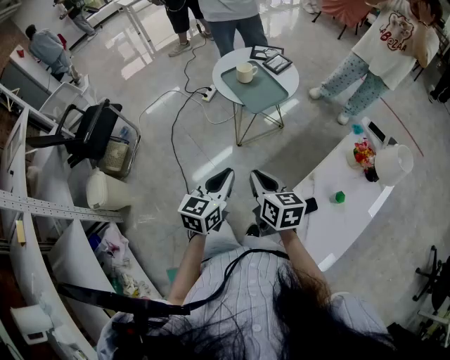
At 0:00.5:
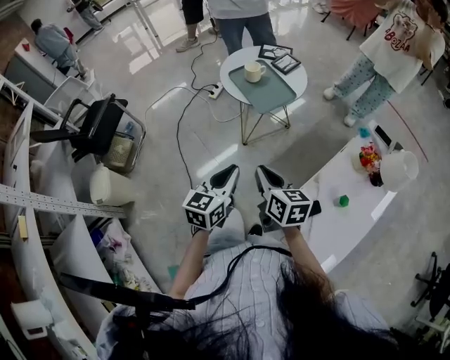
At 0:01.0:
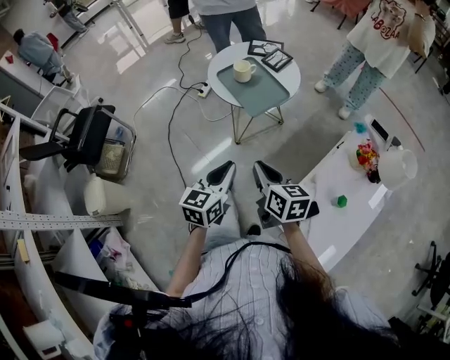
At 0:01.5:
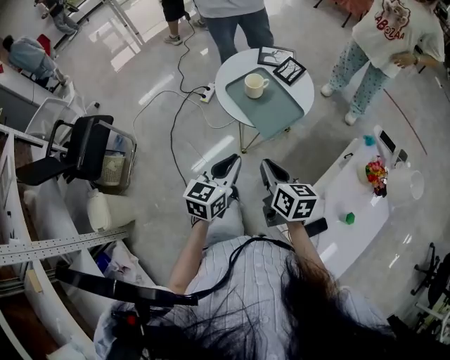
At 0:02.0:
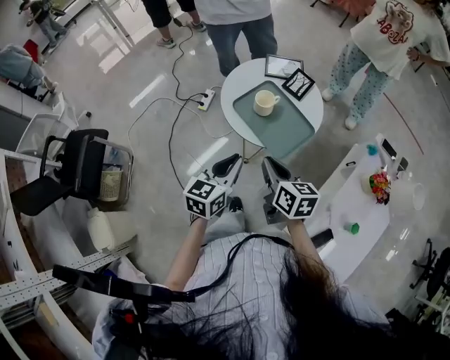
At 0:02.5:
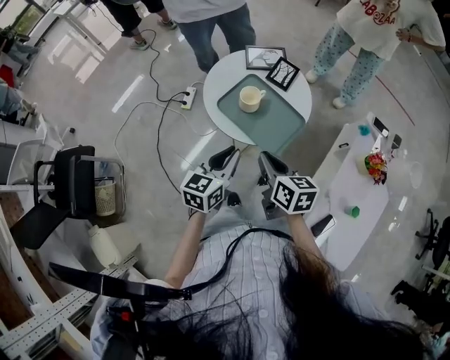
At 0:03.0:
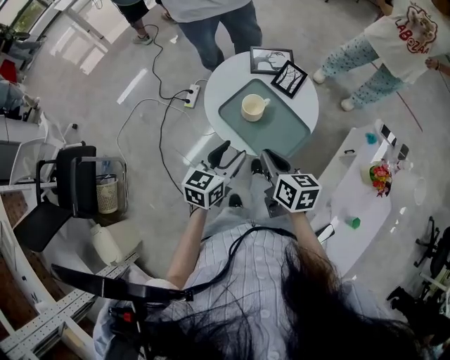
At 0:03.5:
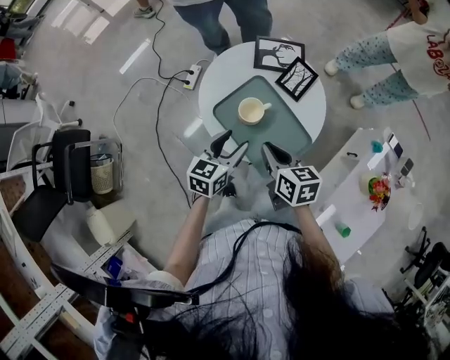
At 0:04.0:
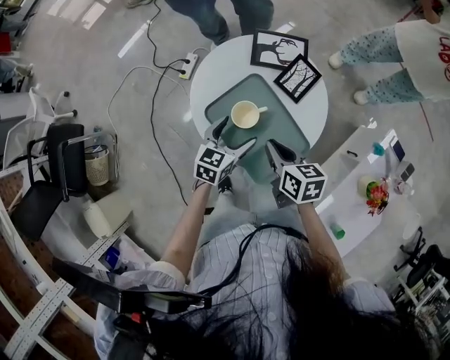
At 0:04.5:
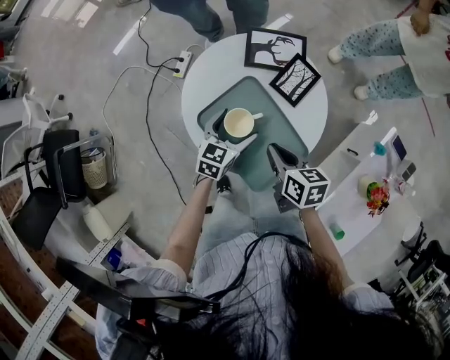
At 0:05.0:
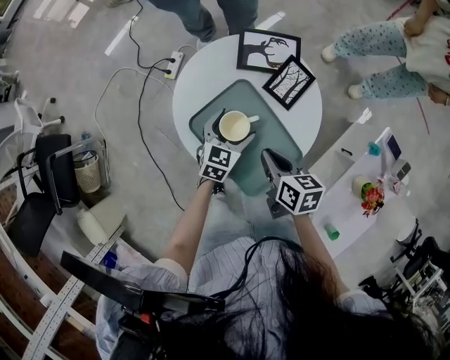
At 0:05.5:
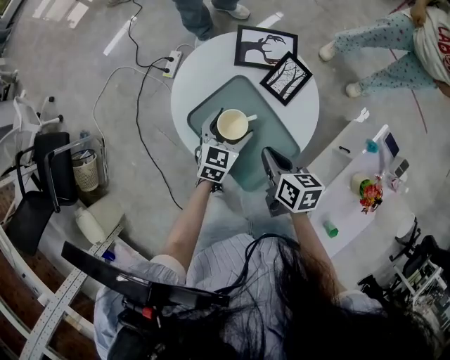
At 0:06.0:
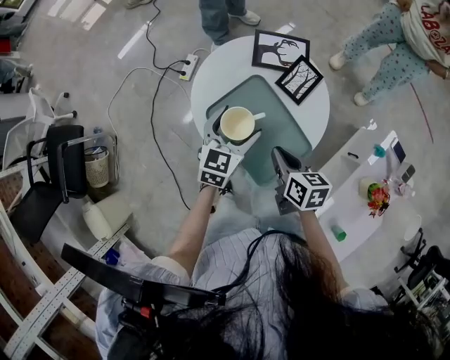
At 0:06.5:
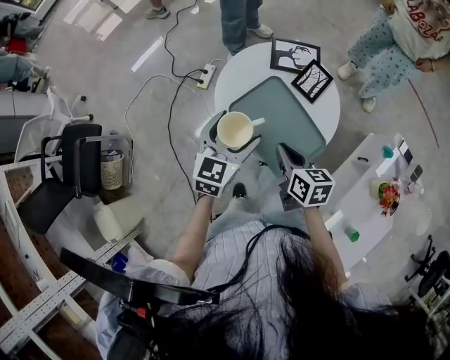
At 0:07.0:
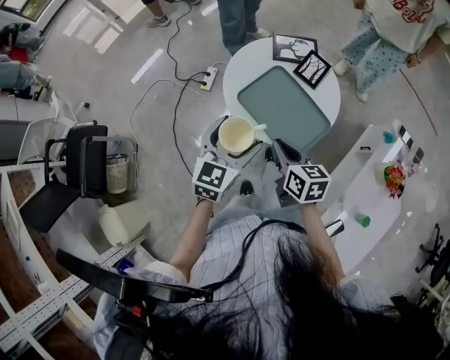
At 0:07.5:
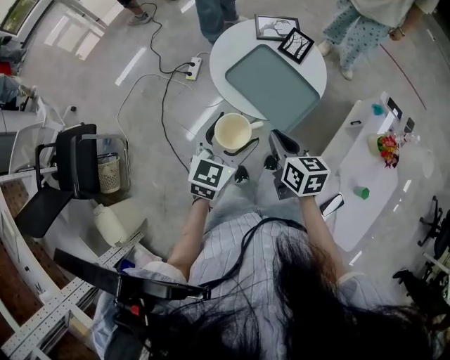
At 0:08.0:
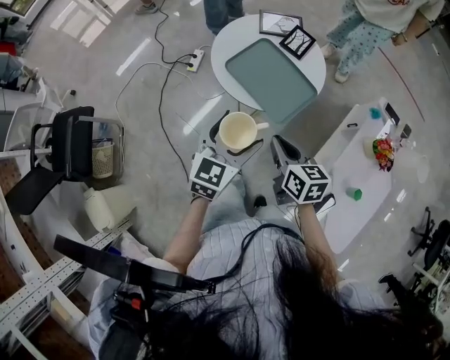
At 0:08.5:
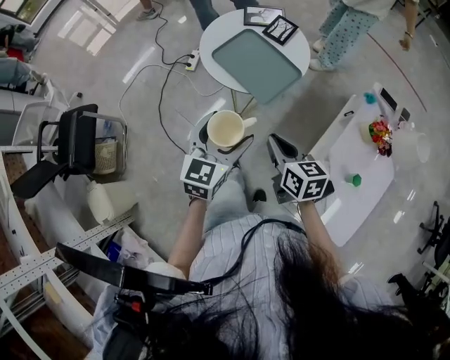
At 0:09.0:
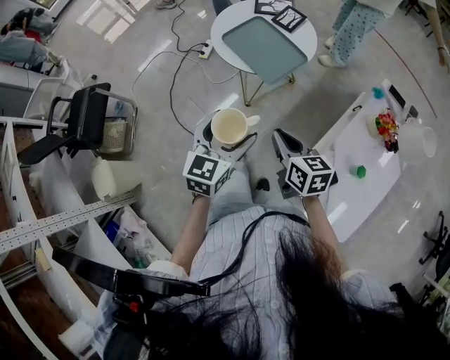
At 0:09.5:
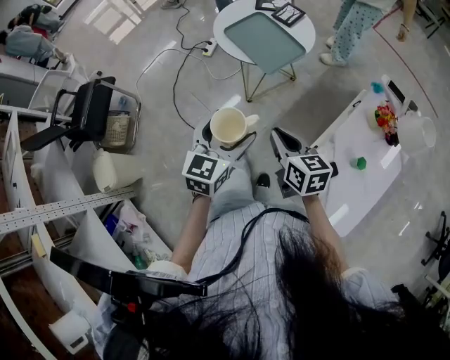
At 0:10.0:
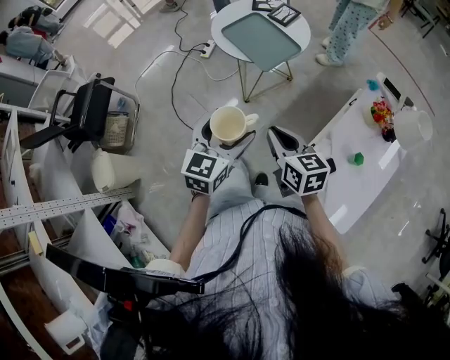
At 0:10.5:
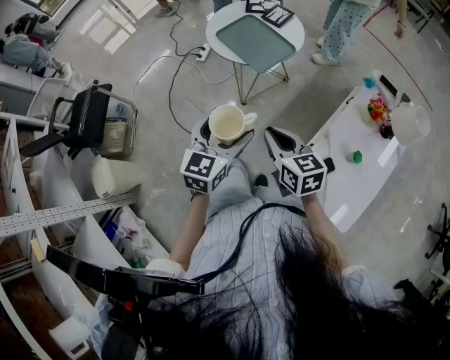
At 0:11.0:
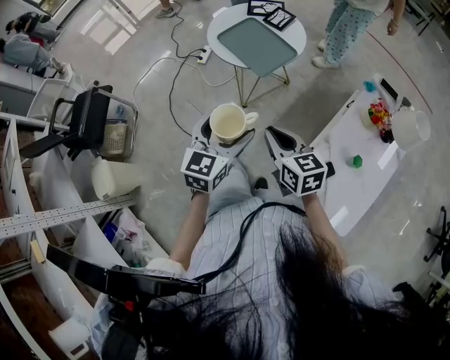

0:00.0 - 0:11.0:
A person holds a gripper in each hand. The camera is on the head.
0:00.0 - 0:02.0: Both grippers move forward, approximately 30 cm.
0:02.0 - 0:03.5: The two grippers go roughly 20 cm forward and downward. The left gripper opens.
0:03.5 - 0:05.5: The right gripper goes roughly 10 cm downward and to the right, while the left gripper heads downward, forward and to the right, covering some 15 cm, and opens.
0:05.5 - 0:07.5: The left gripper shifts roughly 35 cm backward, upward and to the left. The right gripper heads backward, to the left and upward, covering about 25 cm.
0:07.5 - 0:09.0: The right gripper moves backward and to the right, about 25 cm. The left gripper travels backward by about 20 cm.
0:09.0 - 0:11.0: The grippers both shift backward by roughly 5 cm.

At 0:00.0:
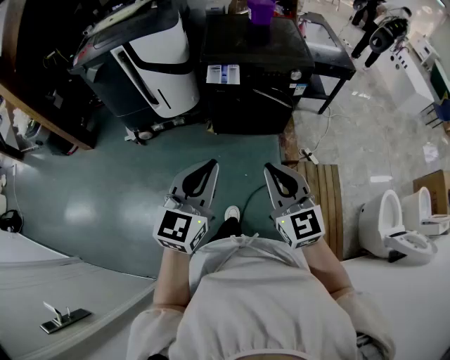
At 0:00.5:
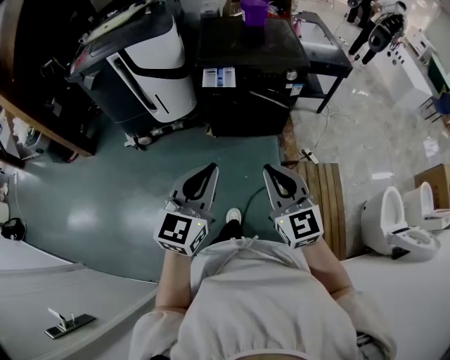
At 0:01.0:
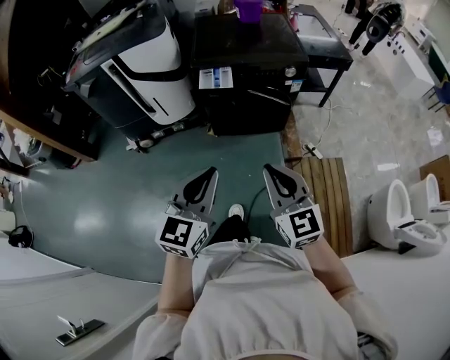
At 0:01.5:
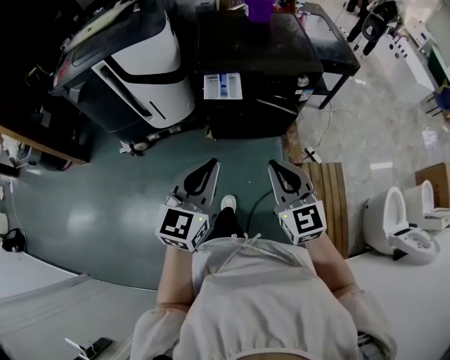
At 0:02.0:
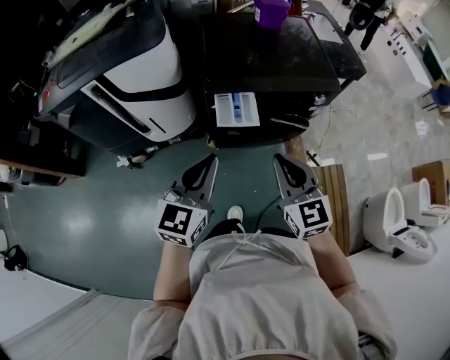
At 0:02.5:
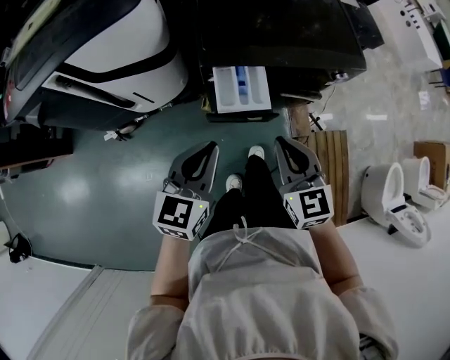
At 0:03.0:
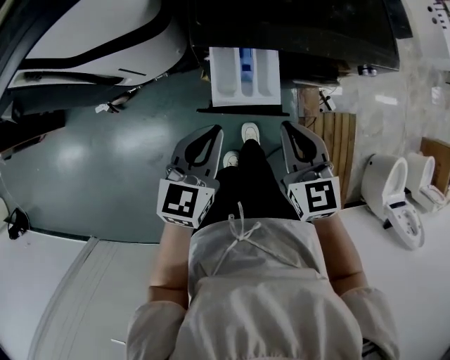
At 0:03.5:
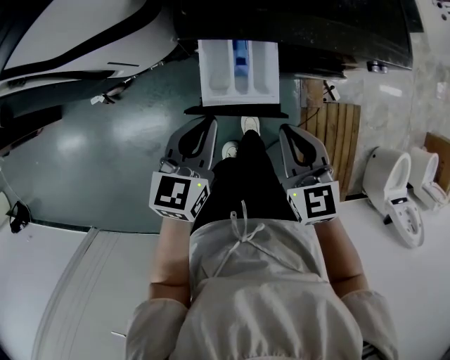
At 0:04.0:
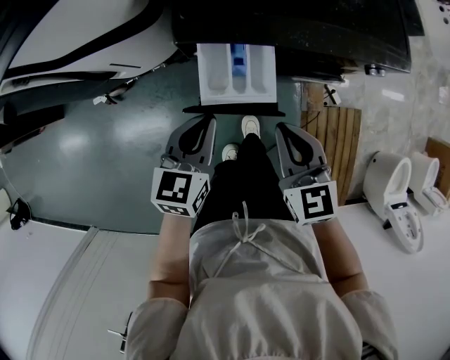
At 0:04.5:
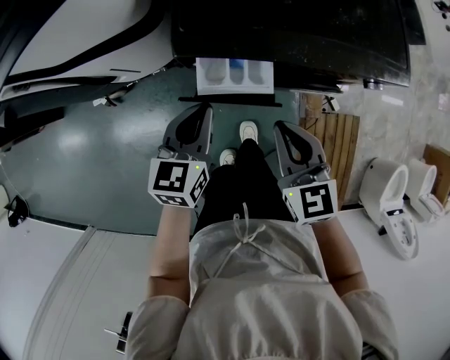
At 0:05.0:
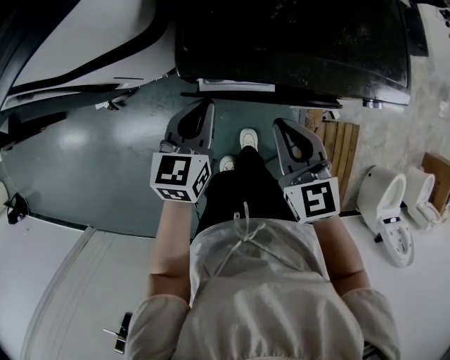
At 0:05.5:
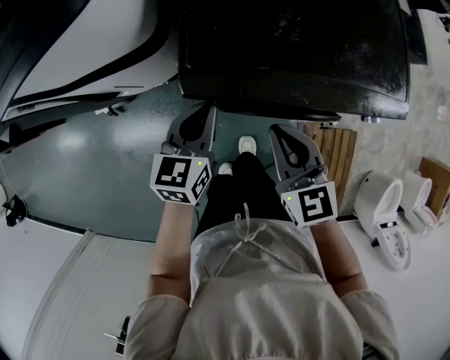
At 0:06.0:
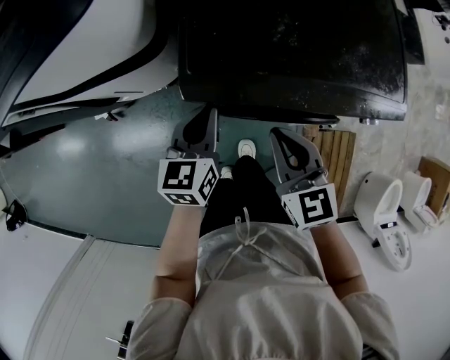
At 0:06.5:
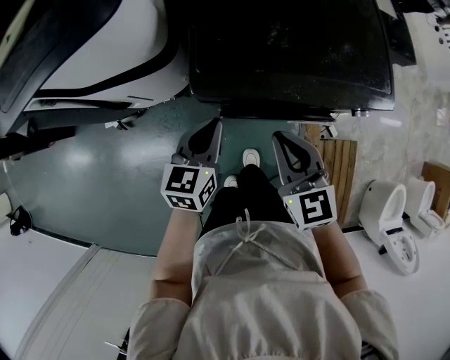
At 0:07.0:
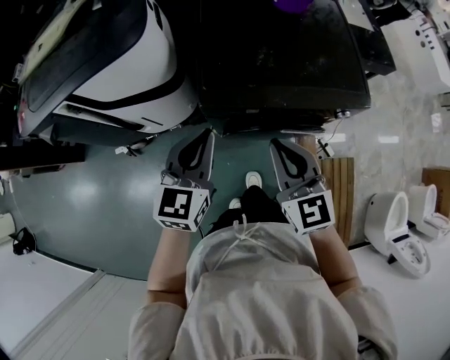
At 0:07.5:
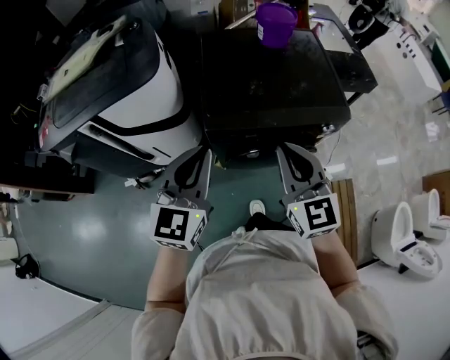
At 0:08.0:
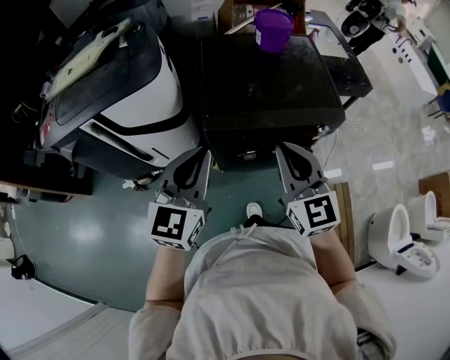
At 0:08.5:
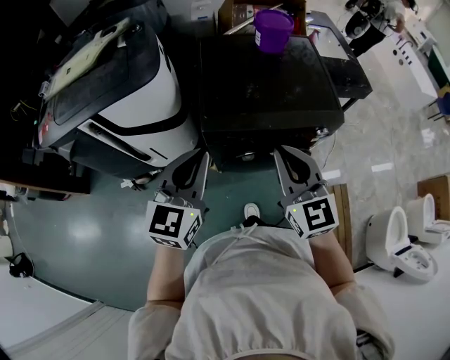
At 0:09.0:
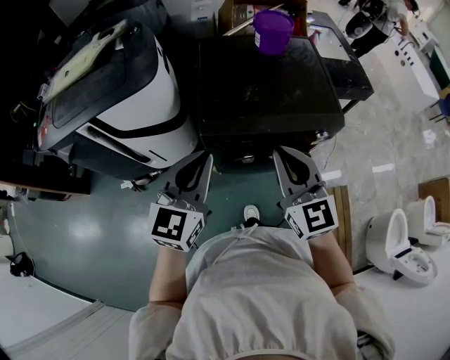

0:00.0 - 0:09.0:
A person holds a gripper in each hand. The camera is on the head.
0:00.0 - 0:02.0: The grippers both shift forward by approximately 30 cm.
0:02.0 - 0:04.5: The grippers both shift downward and forward by about 30 cm. The left gripper changes its angle by some 30 degrees. Meanwhile the right gripper changes its angle by some 20 degrees.
0:04.5 - 0:07.0: Both grippers travel together upward, some 15 cm.
0:07.0 - 0:09.0: The right gripper shifts about 10 cm upward; the left gripper moves upward and backward, some 15 cm.

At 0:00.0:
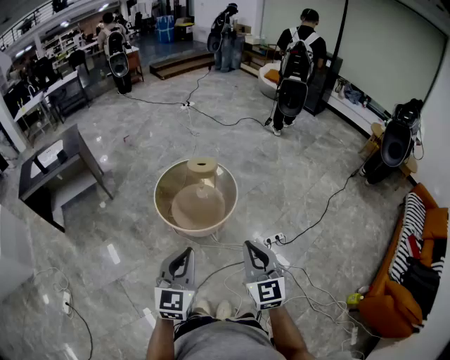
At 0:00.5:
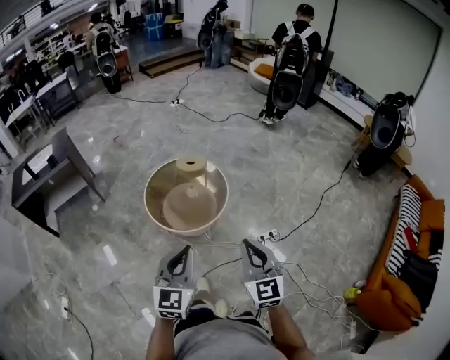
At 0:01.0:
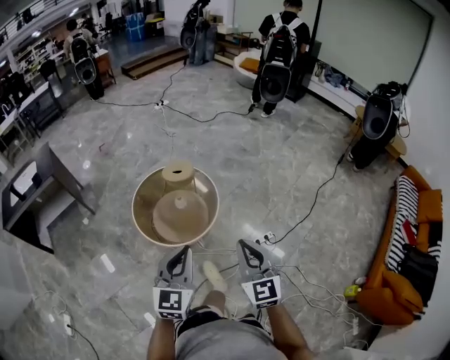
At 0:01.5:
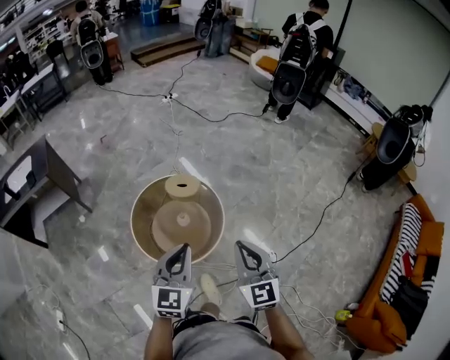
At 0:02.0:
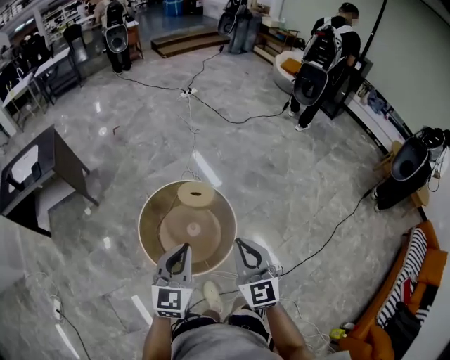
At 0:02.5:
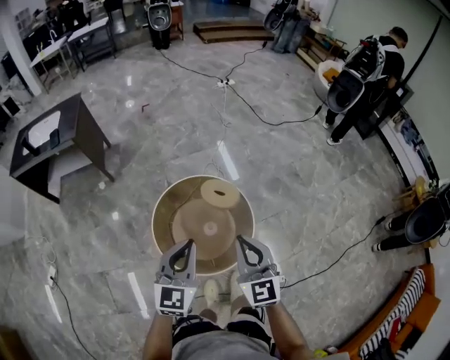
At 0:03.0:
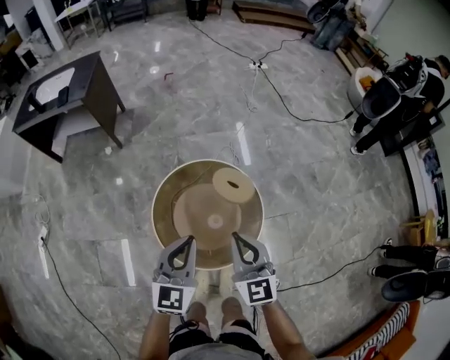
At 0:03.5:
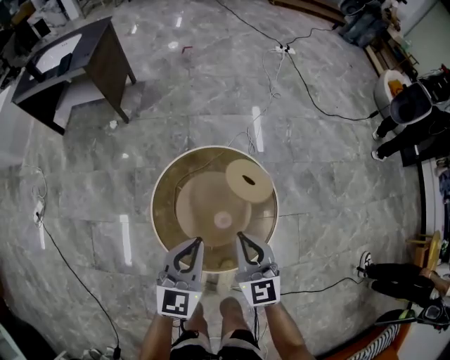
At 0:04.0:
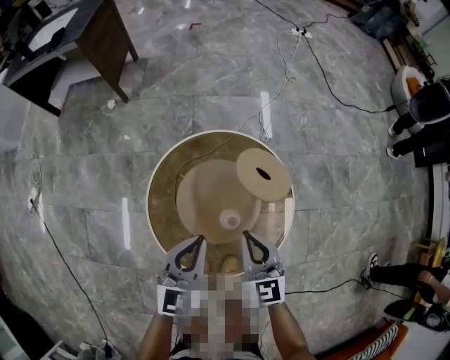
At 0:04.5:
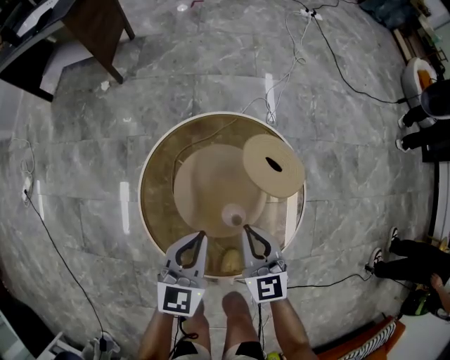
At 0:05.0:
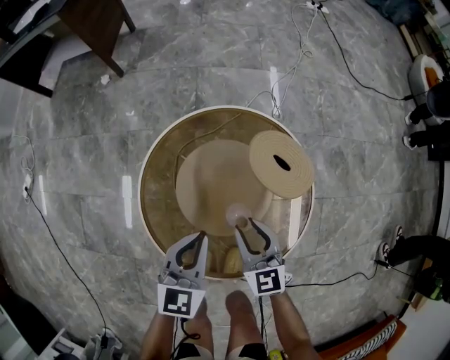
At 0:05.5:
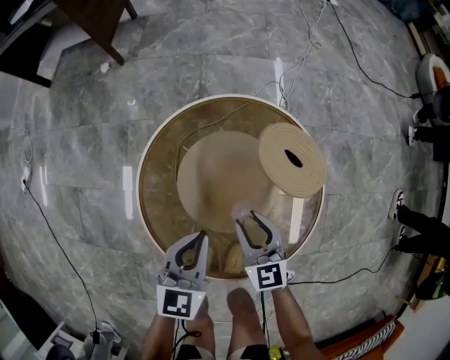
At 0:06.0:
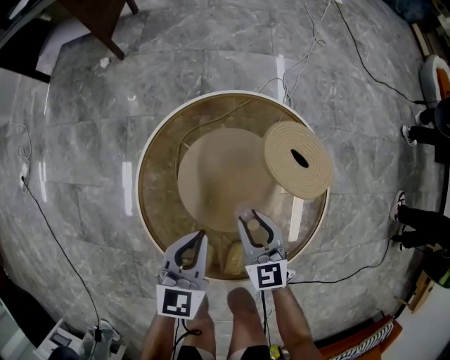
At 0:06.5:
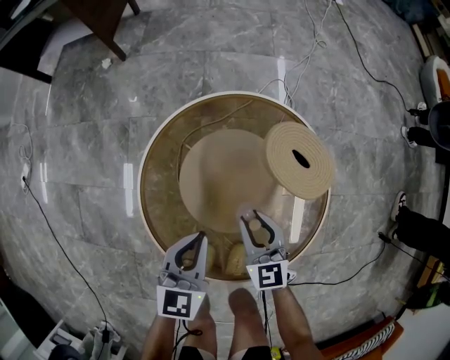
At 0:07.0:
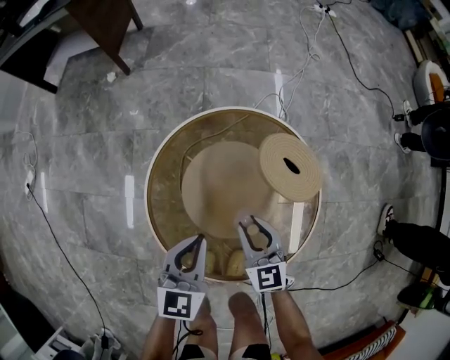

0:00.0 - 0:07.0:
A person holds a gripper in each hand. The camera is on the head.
0:00.0 - 0:02.0: Both grippers are carried forward, approximately 40 cm.
0:02.0 - 0:03.5: The two grippers go approximately 20 cm downward. The right gripper swivels about 30 degrees; the left gripper changes its angle by roughly 30 degrees.
0:03.5 - 0:05.0: Both grippers travel together downward, some 25 cm. The right gripper opens its fingers.
